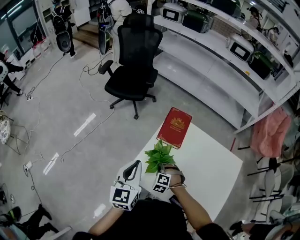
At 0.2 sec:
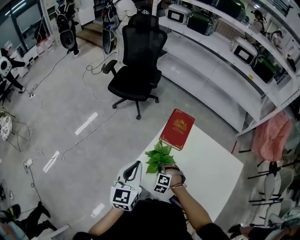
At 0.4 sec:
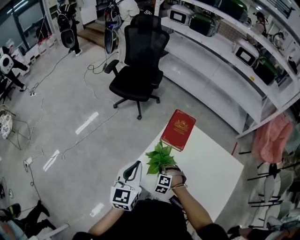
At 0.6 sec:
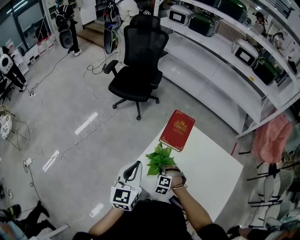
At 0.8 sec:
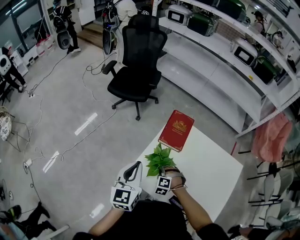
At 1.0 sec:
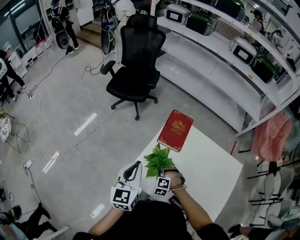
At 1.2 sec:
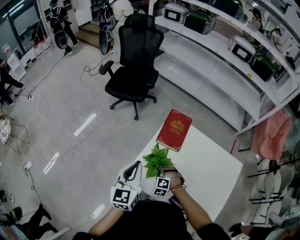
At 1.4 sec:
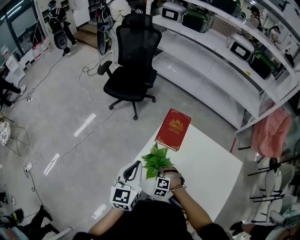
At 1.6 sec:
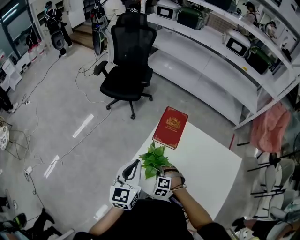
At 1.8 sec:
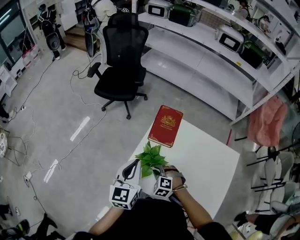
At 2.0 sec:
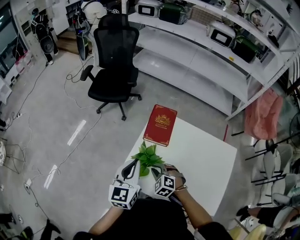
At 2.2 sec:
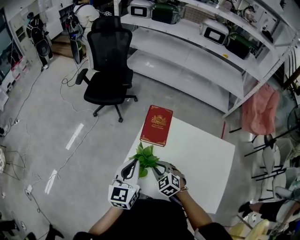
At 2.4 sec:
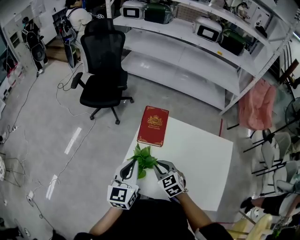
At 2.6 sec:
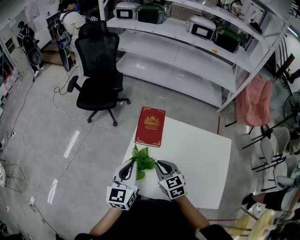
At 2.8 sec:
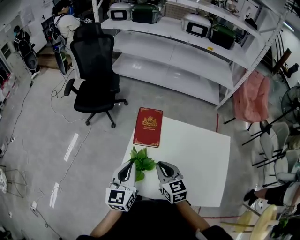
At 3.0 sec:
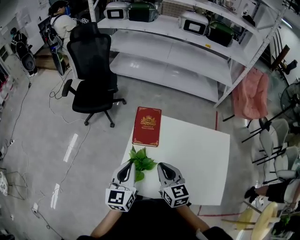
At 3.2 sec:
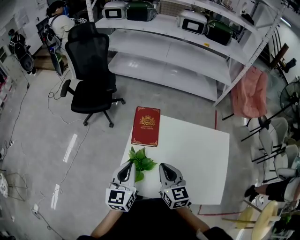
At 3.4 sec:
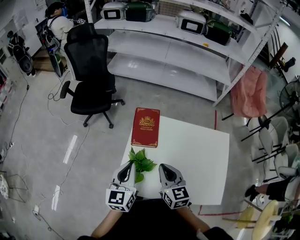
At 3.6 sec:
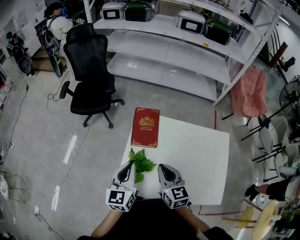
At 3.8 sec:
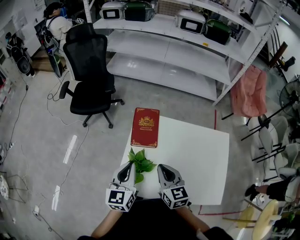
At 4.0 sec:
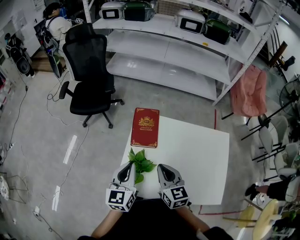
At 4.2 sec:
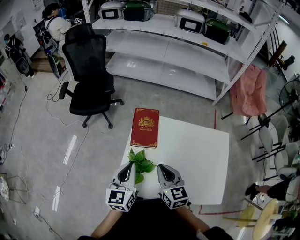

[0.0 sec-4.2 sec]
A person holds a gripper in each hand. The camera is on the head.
0.0 sec to 1.4 sec: There are only small adjustments of the grippers.
1.4 sec to 2.8 sec: The left gripper shifts approximately 5 cm to the right. Meanwhile the right gripper heads upward, covering approximately 20 cm, and rotates around the line of its fingers by about 80 degrees, clockwise from behind.
2.8 sec to 4.2 sec: The grippers stay close to where they were, moving slightly.

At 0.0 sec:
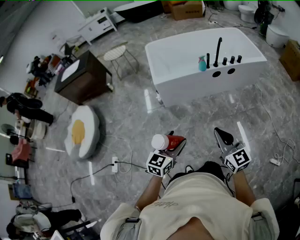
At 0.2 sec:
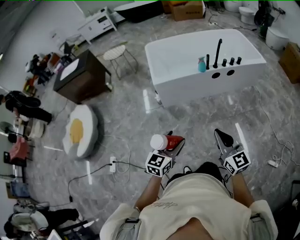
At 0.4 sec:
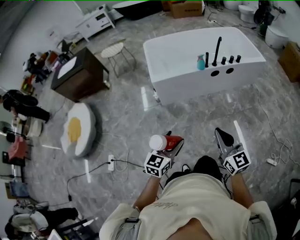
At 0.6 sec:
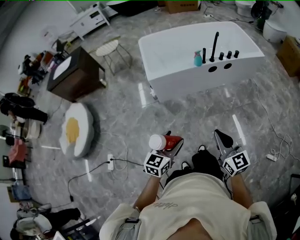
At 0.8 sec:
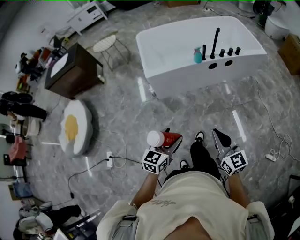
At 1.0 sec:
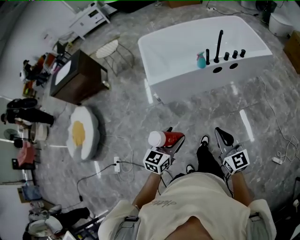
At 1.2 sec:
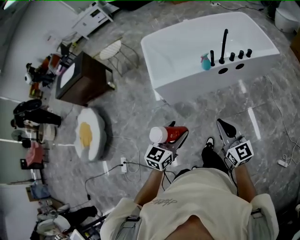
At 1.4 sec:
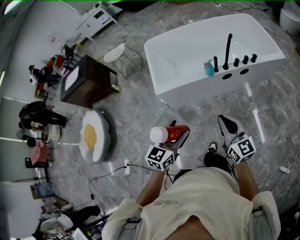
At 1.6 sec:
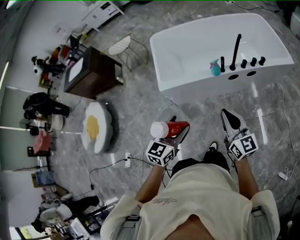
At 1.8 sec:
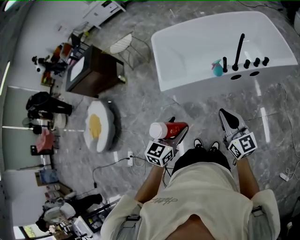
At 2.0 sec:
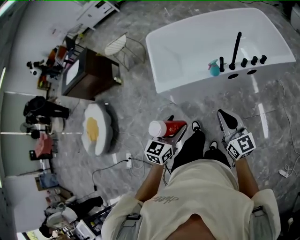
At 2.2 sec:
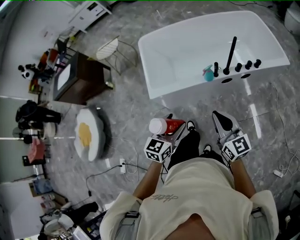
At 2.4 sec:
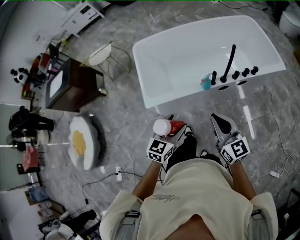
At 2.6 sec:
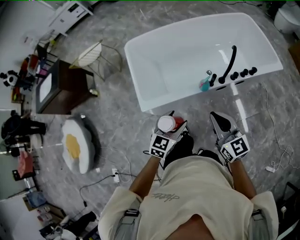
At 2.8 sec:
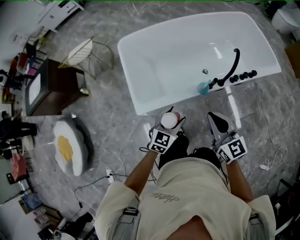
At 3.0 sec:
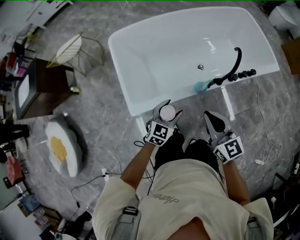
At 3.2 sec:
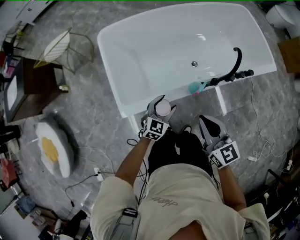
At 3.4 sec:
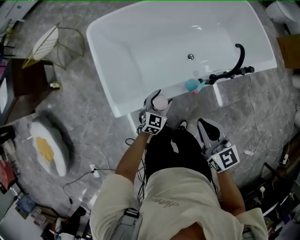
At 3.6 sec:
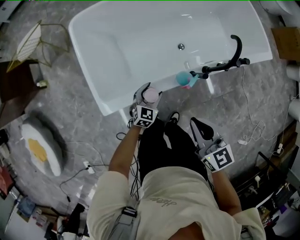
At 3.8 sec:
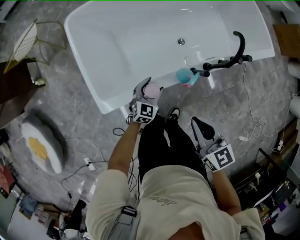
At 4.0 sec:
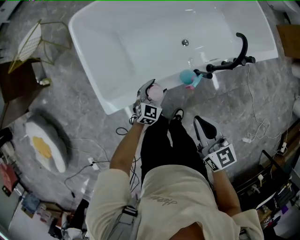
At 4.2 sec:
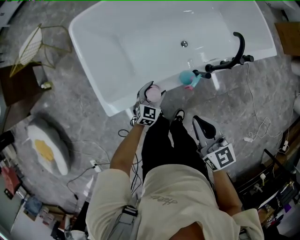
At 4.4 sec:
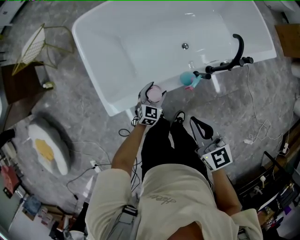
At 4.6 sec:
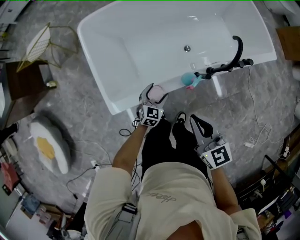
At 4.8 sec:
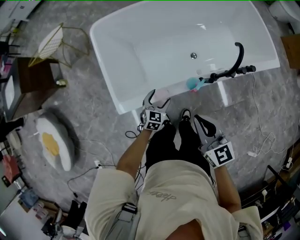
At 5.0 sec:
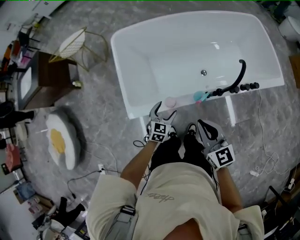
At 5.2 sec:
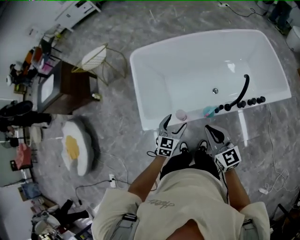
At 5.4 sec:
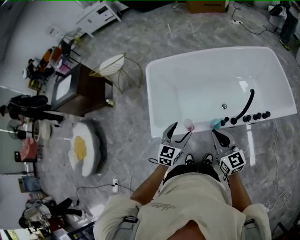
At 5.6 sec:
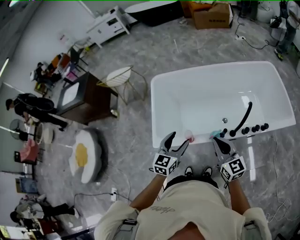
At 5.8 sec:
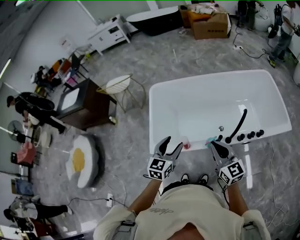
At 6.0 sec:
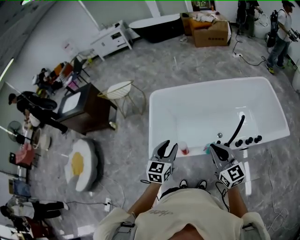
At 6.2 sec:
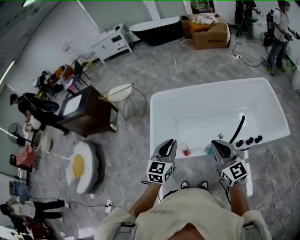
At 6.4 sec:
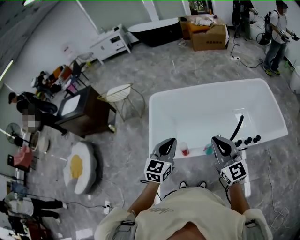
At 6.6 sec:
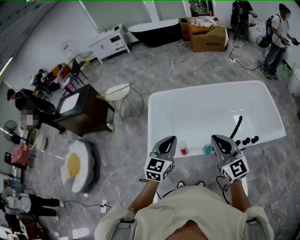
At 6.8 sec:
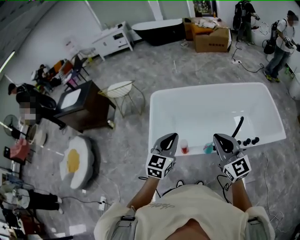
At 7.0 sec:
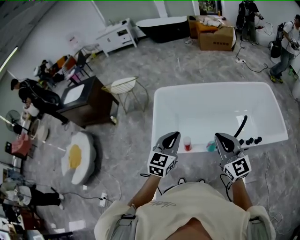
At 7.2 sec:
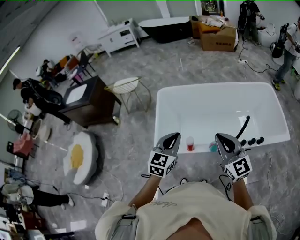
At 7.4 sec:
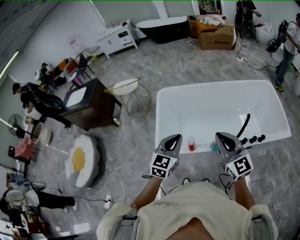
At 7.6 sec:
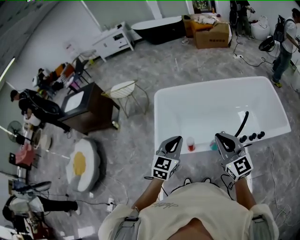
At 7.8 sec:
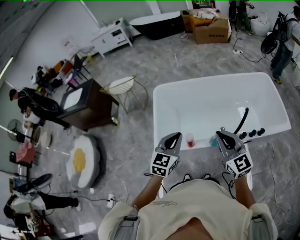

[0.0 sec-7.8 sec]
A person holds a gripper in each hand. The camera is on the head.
0.0 sec to 1.6 sec: Both grippers move forward, some 30 cm.
1.6 sec to 3.2 sec: The left gripper heads forward and downward, covering about 40 cm, and swivels roughly 20 degrees; the right gripper shifts roughly 25 cm forward.
3.2 sec to 4.6 sec: The left gripper shifts about 10 cm downward.
4.6 sec to 6.2 sec: The left gripper shifts approximately 40 cm upward, rotates approximately 30 degrees, and closes up, while the right gripper travels upward by roughly 15 cm, and swivels approximately 30 degrees.
6.2 sec to 7.8 sec: There are only small adjustments of the grippers.

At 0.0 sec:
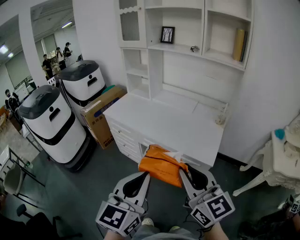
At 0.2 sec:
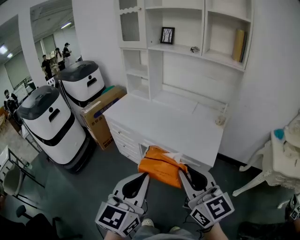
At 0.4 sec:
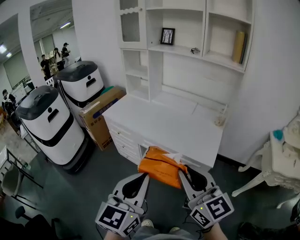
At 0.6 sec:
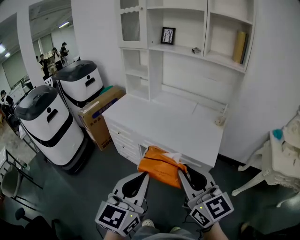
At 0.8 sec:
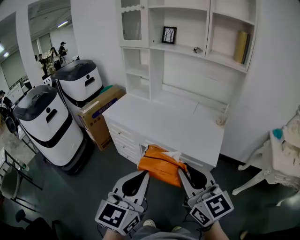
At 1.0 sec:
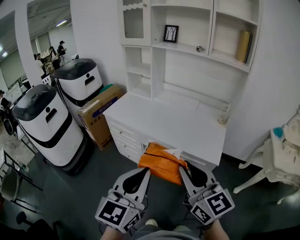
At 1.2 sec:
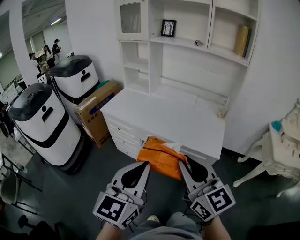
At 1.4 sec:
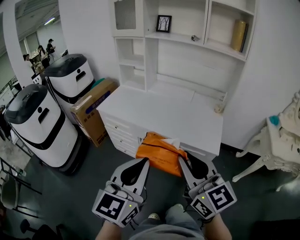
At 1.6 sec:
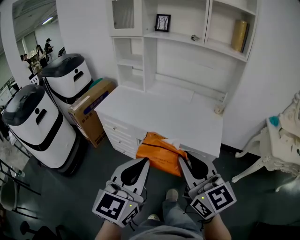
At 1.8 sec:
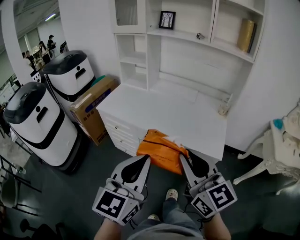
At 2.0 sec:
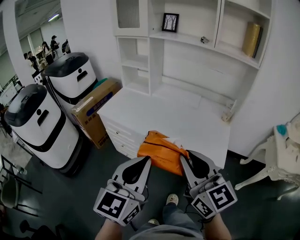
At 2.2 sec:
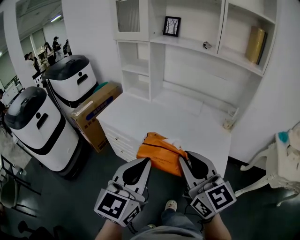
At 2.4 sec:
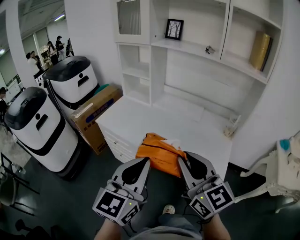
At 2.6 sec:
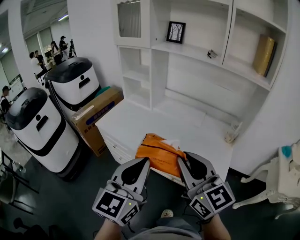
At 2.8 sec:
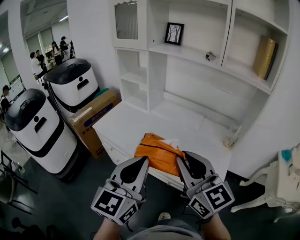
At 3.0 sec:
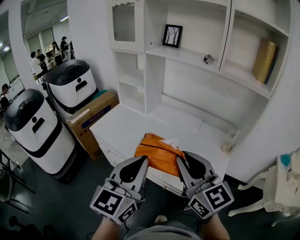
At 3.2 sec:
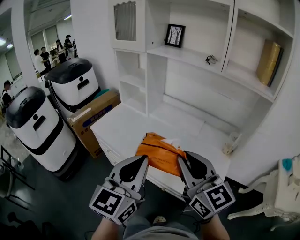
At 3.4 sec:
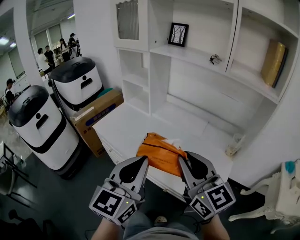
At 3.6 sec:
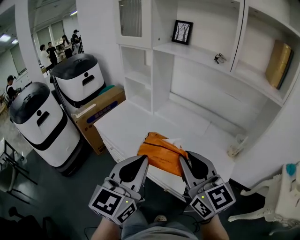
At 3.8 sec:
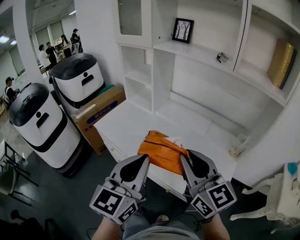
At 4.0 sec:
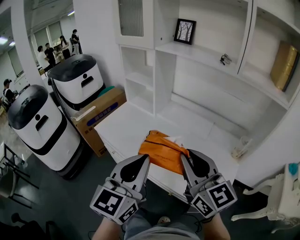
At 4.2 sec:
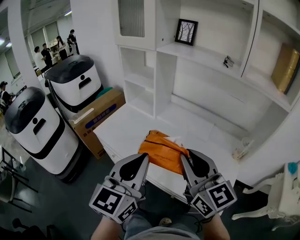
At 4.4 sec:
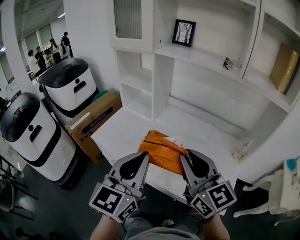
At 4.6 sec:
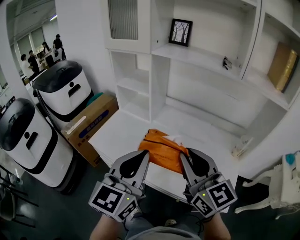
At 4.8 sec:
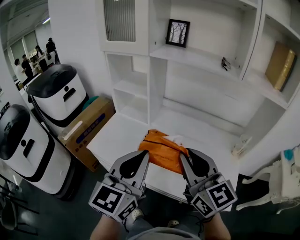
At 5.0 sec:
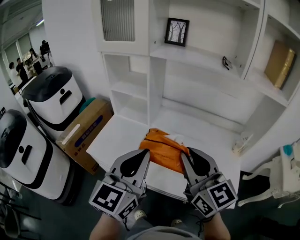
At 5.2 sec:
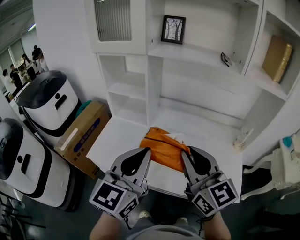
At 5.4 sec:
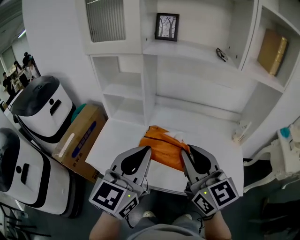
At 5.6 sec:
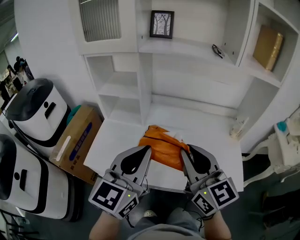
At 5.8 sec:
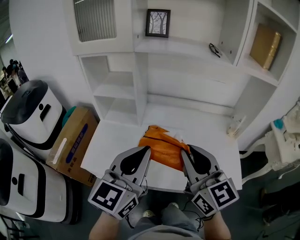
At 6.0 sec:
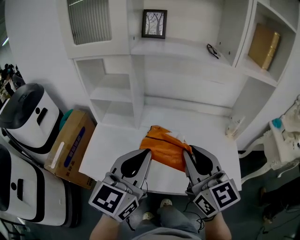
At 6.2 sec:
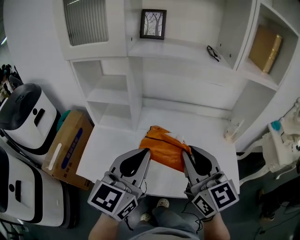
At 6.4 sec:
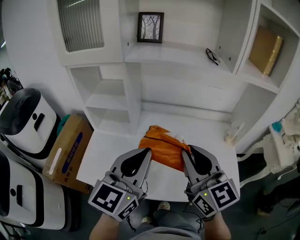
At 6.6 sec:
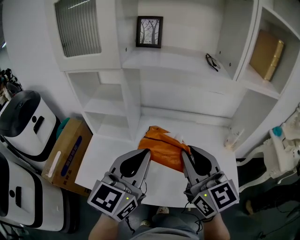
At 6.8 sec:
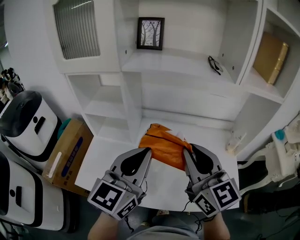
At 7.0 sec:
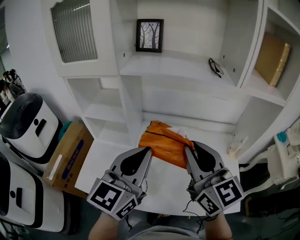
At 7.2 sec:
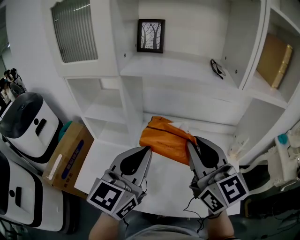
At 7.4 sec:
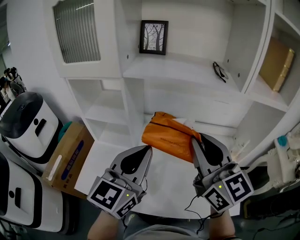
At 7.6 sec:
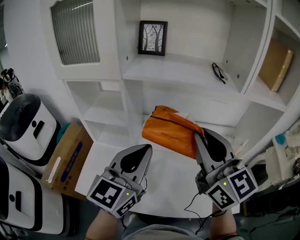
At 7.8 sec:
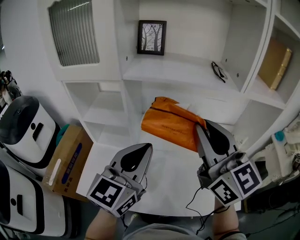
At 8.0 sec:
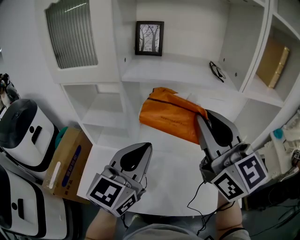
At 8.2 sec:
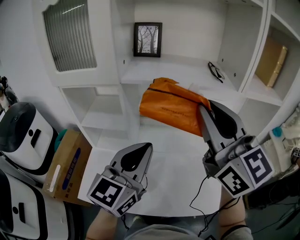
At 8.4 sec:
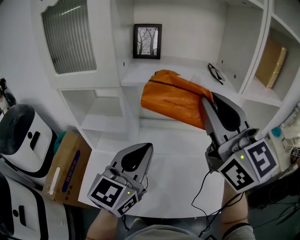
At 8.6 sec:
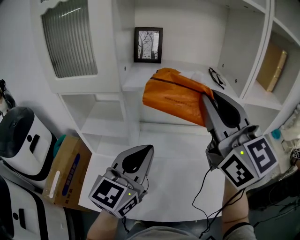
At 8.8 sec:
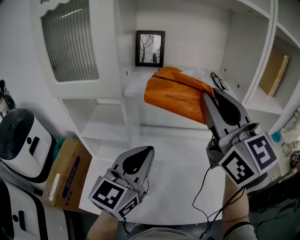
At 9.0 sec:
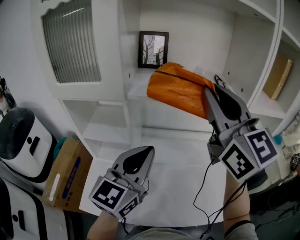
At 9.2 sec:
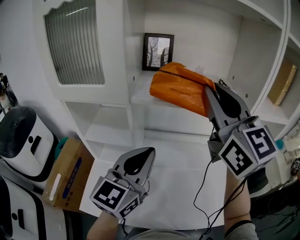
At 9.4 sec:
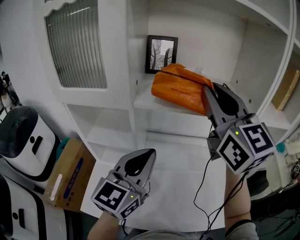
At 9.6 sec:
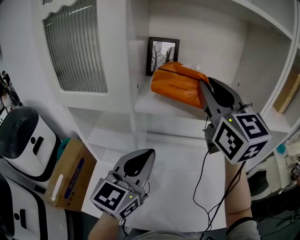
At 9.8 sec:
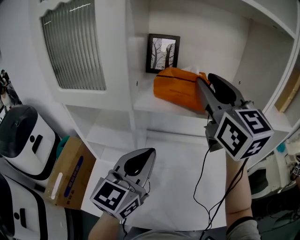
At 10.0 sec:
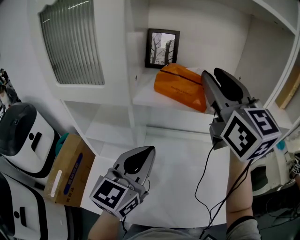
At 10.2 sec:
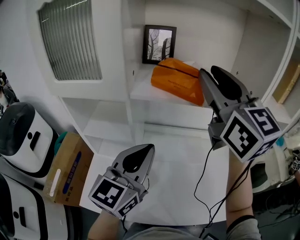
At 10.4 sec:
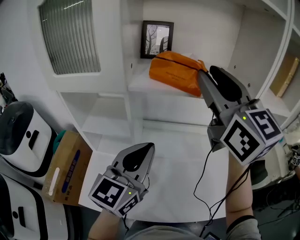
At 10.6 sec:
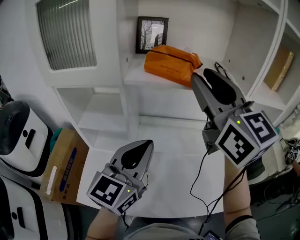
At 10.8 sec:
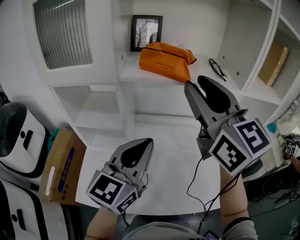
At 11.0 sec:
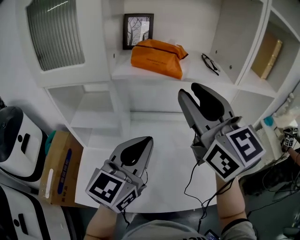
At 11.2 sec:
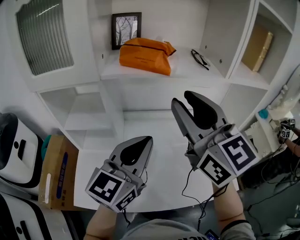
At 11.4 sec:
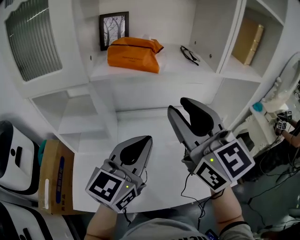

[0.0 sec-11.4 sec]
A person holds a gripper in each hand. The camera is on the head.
0.0 sec to 1.4 sec: The grippers both shift to the left by roughly 10 cm.
1.4 sec to 2.8 sec: The two grippers go roughly 20 cm forward.
2.8 sec to 4.2 sec: Both grippers move forward, roughly 10 cm.
4.2 sec to 5.6 sec: The right gripper heads to the left and forward, covering about 10 cm, and turns by roughly 20 degrees, while the left gripper shifts about 15 cm forward and to the left, and rotates about 20 degrees.
5.6 sec to 7.2 sec: The right gripper is displaced forward and upward by about 15 cm. Meanwhile the left gripper is displaced forward by roughly 10 cm.
7.2 sec to 8.6 sec: The left gripper shifts by some 5 cm, while the right gripper shifts approximately 15 cm upward.
8.6 sec to 10.0 sec: The left gripper is displaced forward by approximately 5 cm. The right gripper shifts approximately 10 cm forward, and opens.
10.0 sec to 11.4 sec: The left gripper goes some 10 cm to the right and backward; the right gripper shifts about 15 cm backward and downward.
